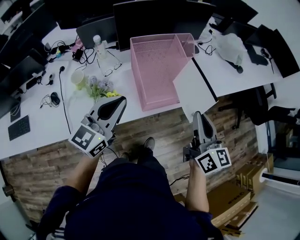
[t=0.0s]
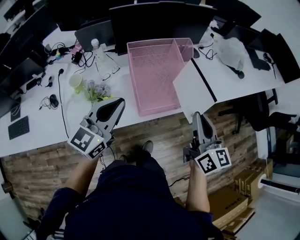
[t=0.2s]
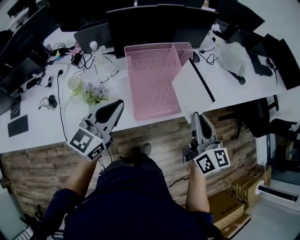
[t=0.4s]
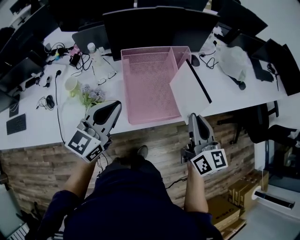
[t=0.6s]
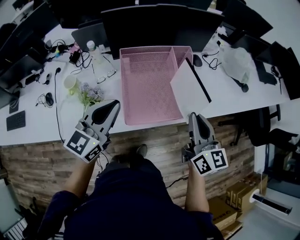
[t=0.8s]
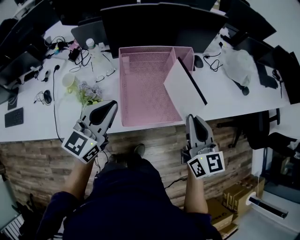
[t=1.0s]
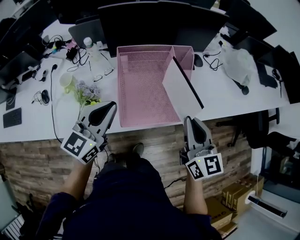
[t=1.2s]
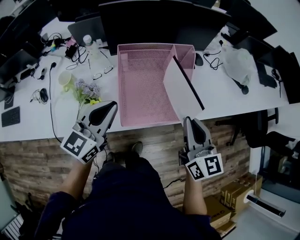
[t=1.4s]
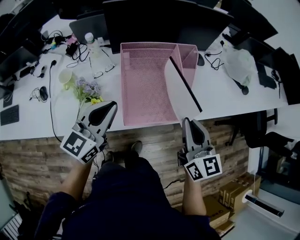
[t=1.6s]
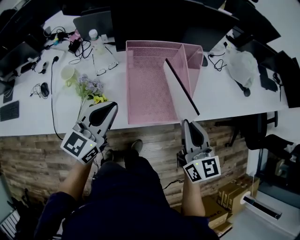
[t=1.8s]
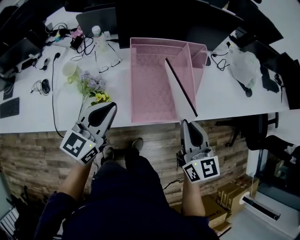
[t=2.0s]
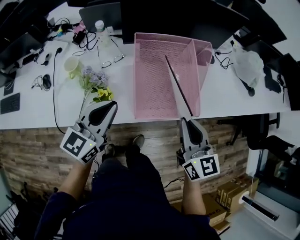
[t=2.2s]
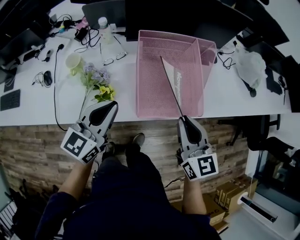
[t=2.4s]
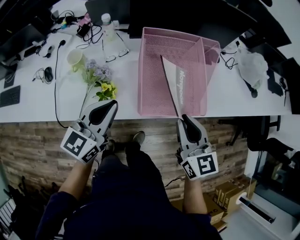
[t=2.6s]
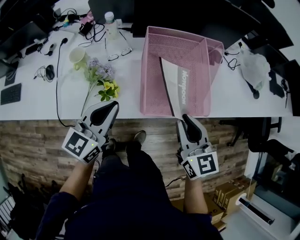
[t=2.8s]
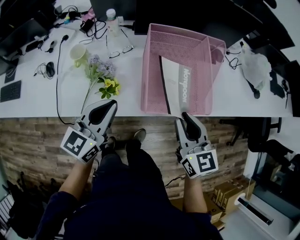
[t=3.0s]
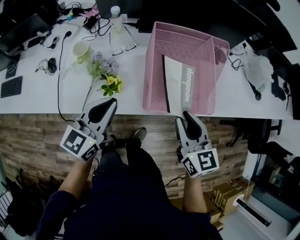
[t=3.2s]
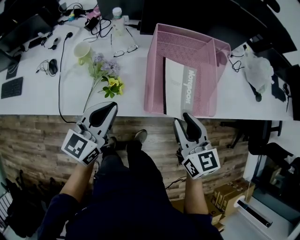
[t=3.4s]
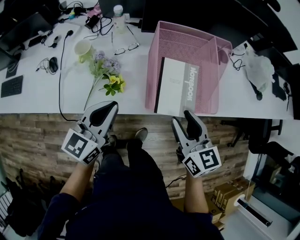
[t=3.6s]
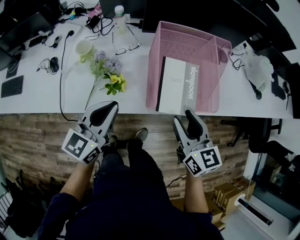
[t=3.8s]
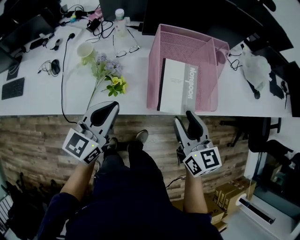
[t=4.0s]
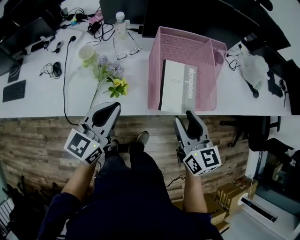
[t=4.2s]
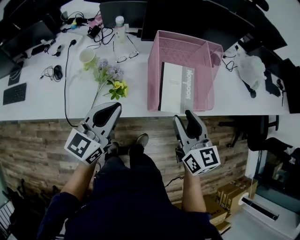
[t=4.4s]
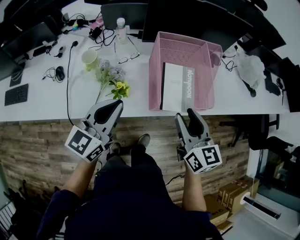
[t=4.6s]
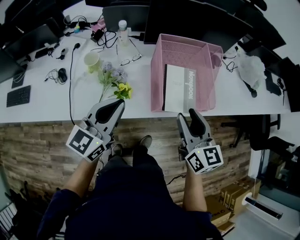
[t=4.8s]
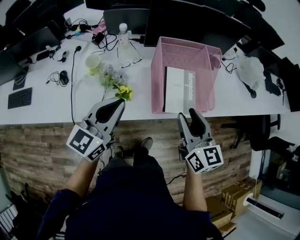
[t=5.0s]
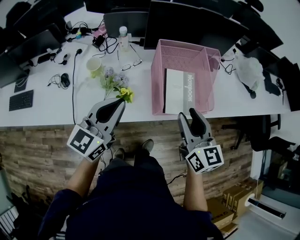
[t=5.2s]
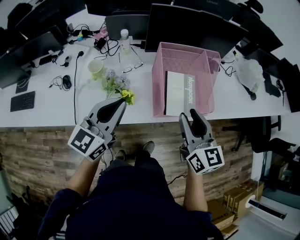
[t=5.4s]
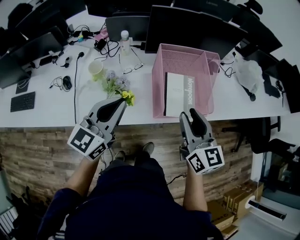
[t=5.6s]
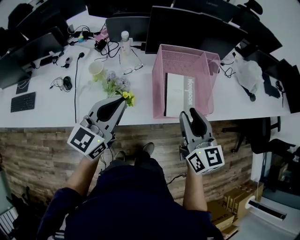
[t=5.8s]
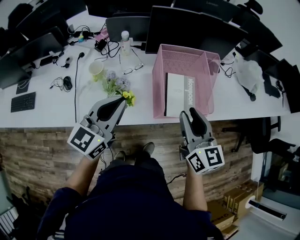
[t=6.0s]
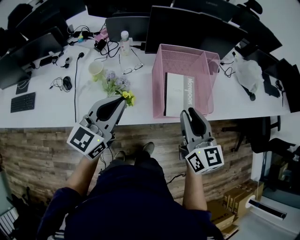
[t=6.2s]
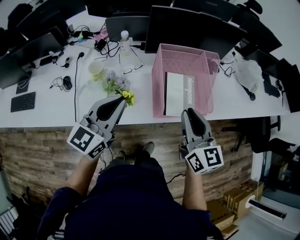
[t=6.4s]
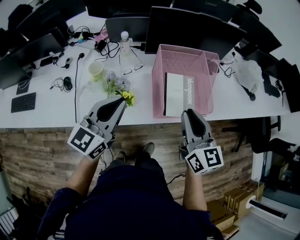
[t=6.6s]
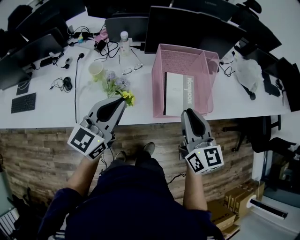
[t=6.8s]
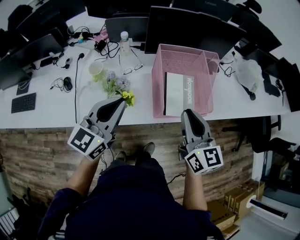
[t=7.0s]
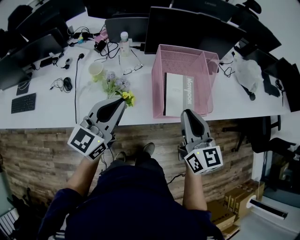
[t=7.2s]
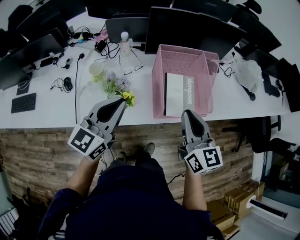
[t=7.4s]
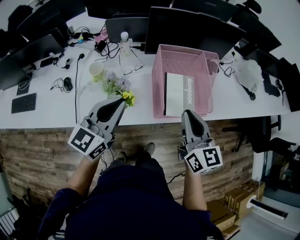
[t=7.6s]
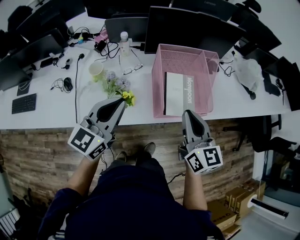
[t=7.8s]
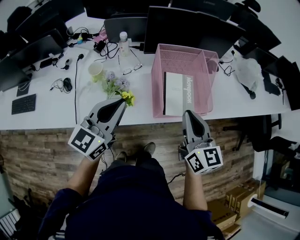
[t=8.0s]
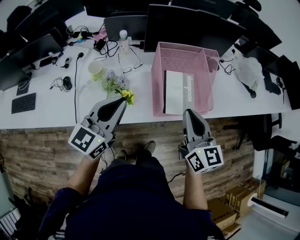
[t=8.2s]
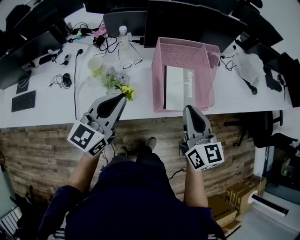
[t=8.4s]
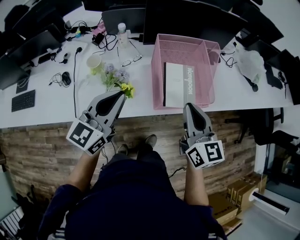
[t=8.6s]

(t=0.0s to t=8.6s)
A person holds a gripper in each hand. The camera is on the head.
t=0.0s - t=1.4s: The grippers both shift forward by about 10 cm.
t=1.4s - t=2.8s: The left gripper goes about 10 cm to the left and backward. The right gripper travels to the left and downward by some 10 cm.
t=2.8s - t=4.4s: The left gripper ends up some 5 cm from where it was. The right gripper opens.
t=4.4s - t=5.8s: Both grippers travel together upward, roughly 5 cm.
t=5.8s - t=7.2s: The right gripper closes its fingers.
t=7.2s - t=8.6s: The grippers stay close to where they were, moving slightly.

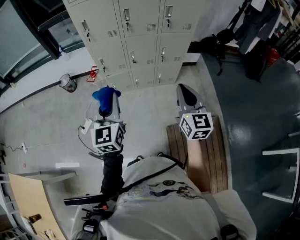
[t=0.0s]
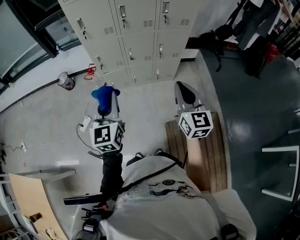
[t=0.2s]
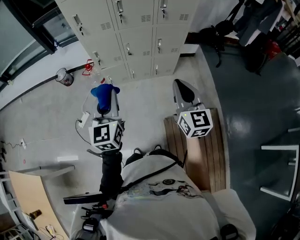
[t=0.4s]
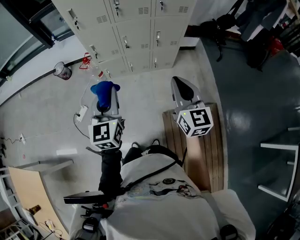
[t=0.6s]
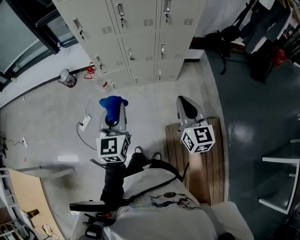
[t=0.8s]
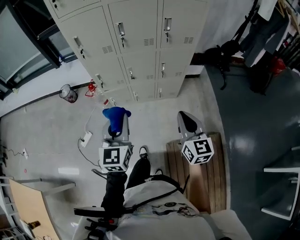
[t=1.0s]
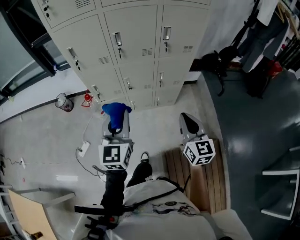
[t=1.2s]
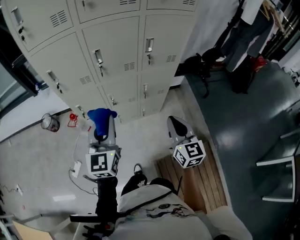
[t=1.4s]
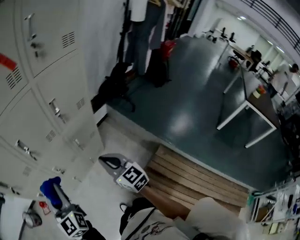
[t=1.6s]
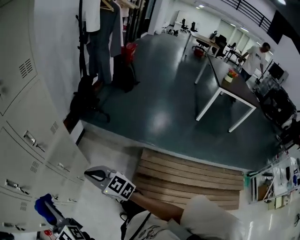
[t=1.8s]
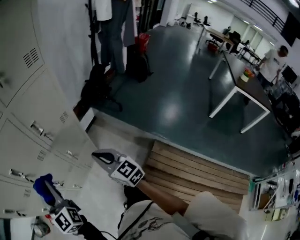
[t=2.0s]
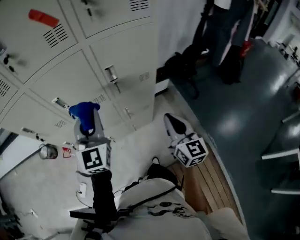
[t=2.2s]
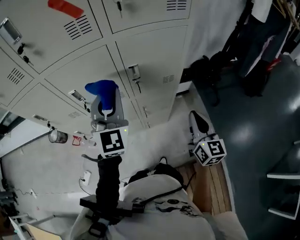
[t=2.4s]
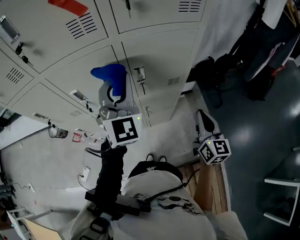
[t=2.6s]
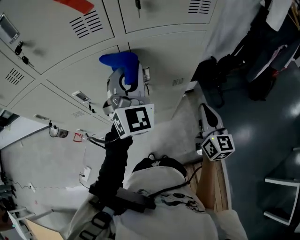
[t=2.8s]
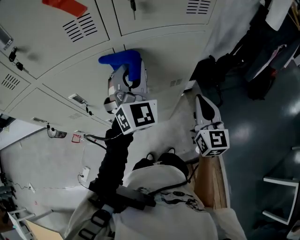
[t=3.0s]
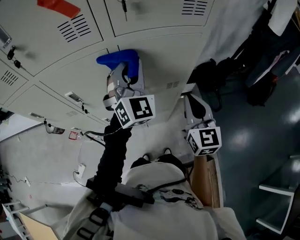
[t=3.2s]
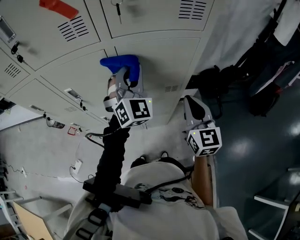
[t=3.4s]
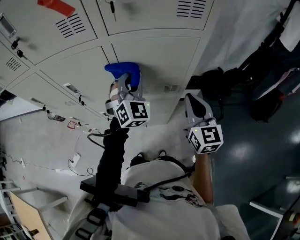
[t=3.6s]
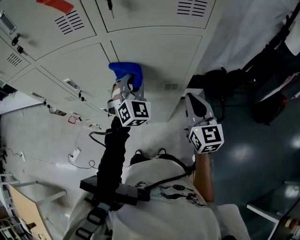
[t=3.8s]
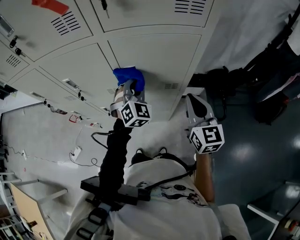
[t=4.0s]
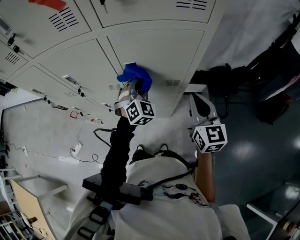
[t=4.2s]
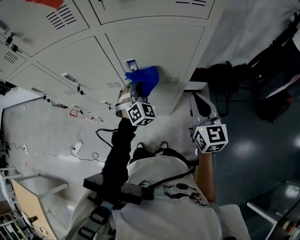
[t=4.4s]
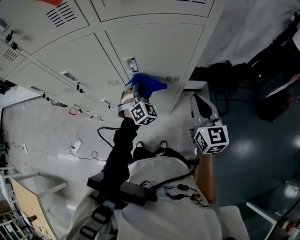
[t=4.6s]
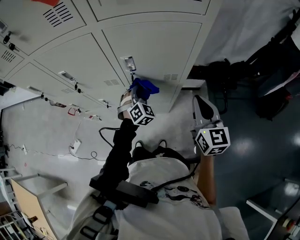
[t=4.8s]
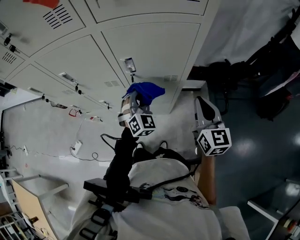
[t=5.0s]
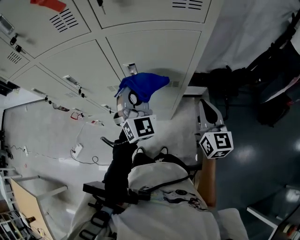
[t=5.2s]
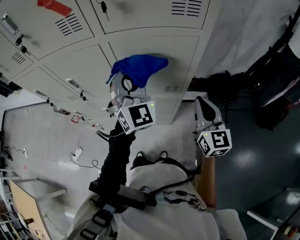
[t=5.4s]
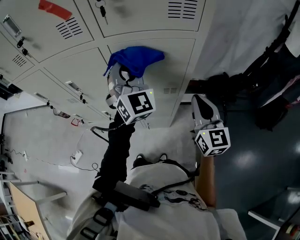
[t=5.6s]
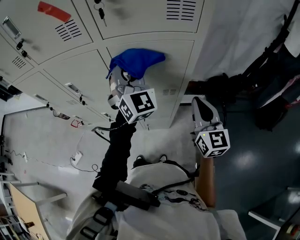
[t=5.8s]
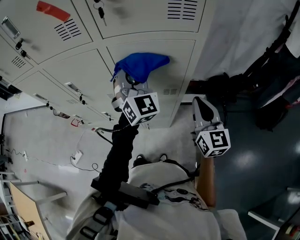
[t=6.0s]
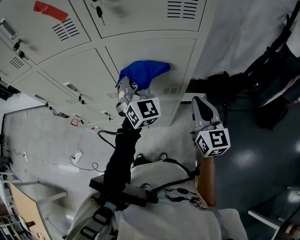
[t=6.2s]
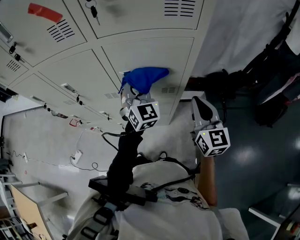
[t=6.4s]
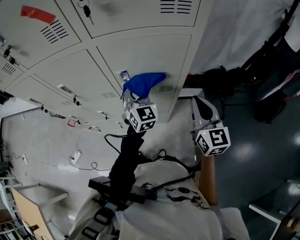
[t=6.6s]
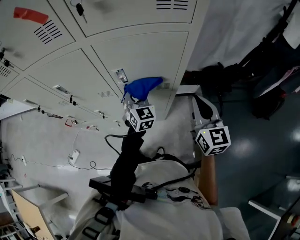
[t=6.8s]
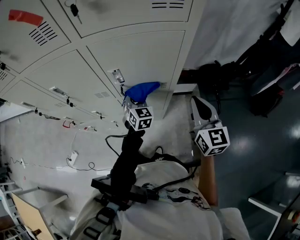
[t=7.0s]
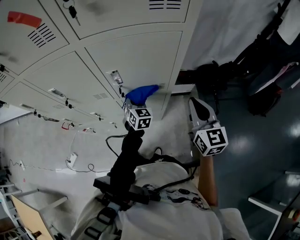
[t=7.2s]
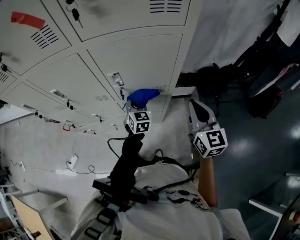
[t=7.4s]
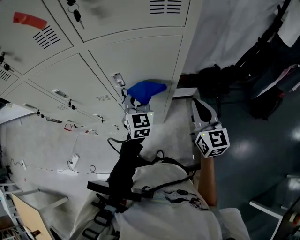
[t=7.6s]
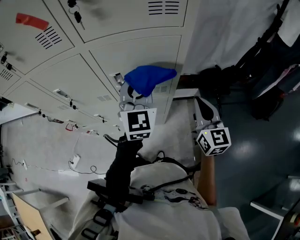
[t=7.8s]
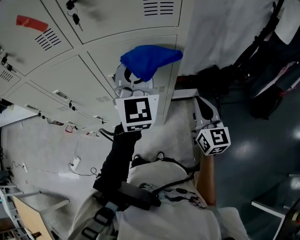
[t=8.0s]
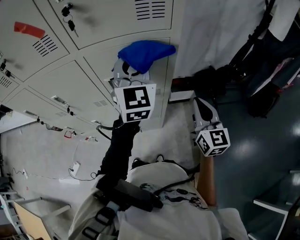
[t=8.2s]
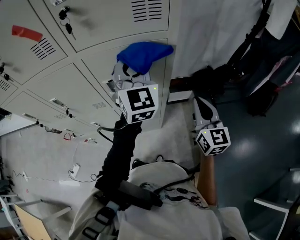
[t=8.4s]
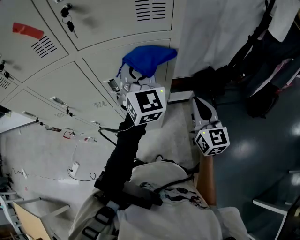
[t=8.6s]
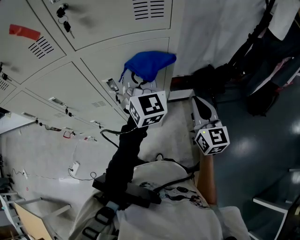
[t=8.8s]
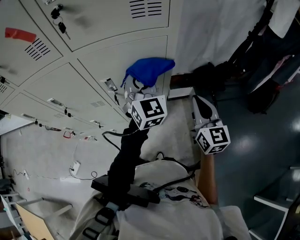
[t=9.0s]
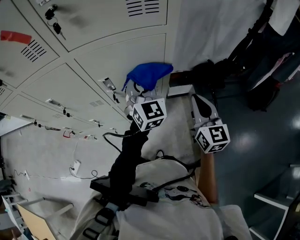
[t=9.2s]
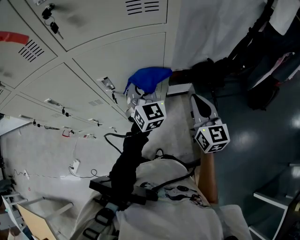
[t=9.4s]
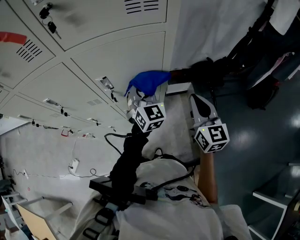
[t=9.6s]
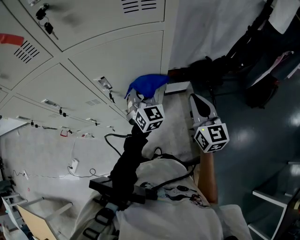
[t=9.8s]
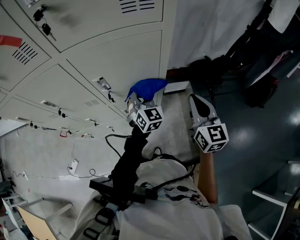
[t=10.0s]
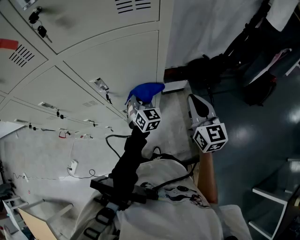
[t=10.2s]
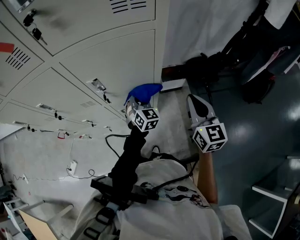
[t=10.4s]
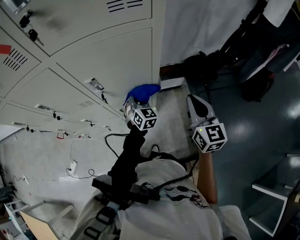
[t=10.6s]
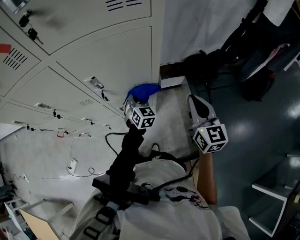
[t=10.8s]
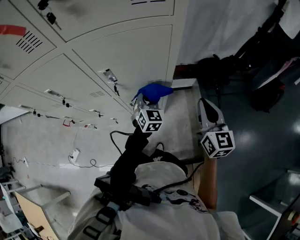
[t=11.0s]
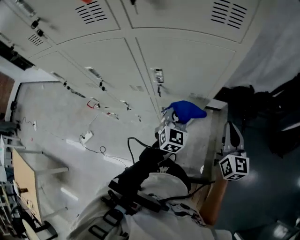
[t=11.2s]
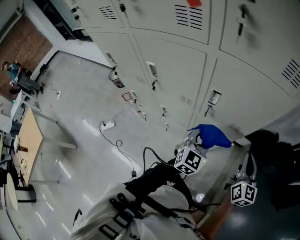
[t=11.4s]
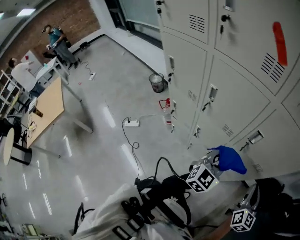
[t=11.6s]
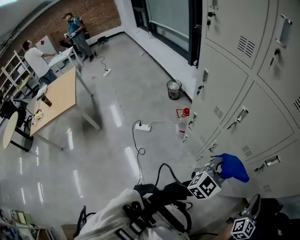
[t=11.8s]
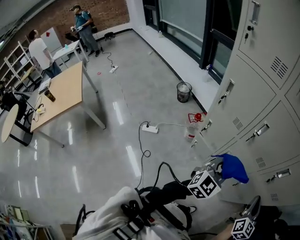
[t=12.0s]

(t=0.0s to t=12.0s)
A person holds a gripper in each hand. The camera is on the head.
t=0.0s - t=1.6s: The grippers both shift forward by approximately 30 cm.
t=1.6s - t=3.0s: Both grippers travel together forward and to the right, some 35 cm. The left gripper twists about 40 degrees clockwise, seen from behind.
t=3.0s - t=4.4s: The left gripper heads downward, covering some 25 cm, and turns by about 30 degrees. The right gripper is displaced to the right and downward by some 10 cm.
t=4.4s - t=6.0s: The left gripper heads upward, covering about 20 cm, and rotates about 30 degrees.
t=6.0s - t=7.6s: The left gripper shifts roughly 15 cm downward, and rotates approximately 30 degrees.
t=7.6s - t=9.0s: The left gripper shifts about 15 cm upward and to the right.
t=9.0s - t=10.4s: The left gripper goes approximately 25 cm downward, and swivels about 20 degrees.
t=10.4s - t=12.0s: The right gripper travels to the left by roughly 35 cm. Meanwhile the left gripper is displaced to the left, backward and upward by some 50 cm, and swivels about 30 degrees.

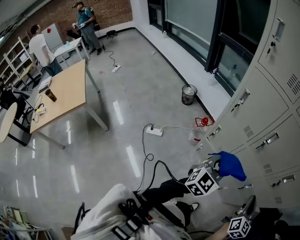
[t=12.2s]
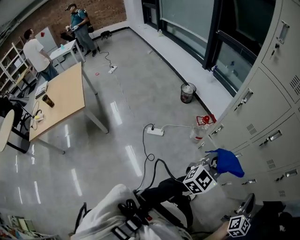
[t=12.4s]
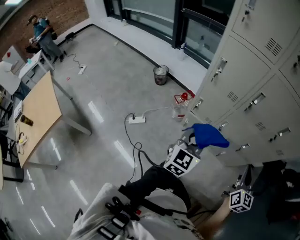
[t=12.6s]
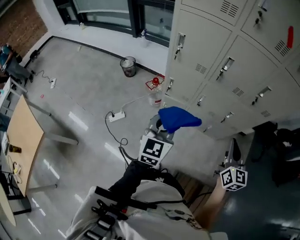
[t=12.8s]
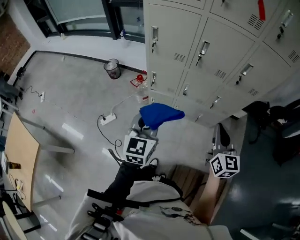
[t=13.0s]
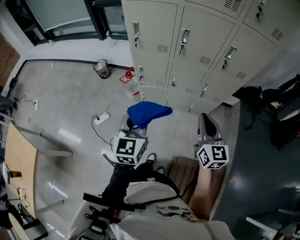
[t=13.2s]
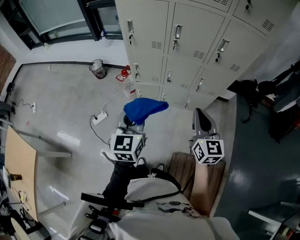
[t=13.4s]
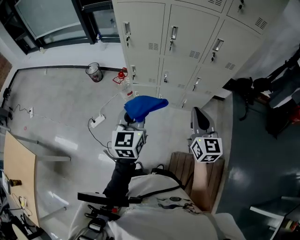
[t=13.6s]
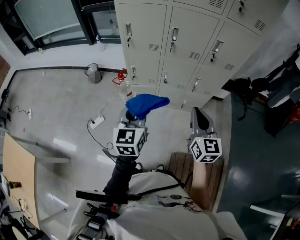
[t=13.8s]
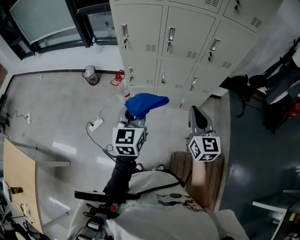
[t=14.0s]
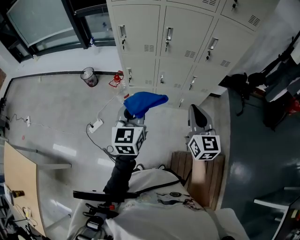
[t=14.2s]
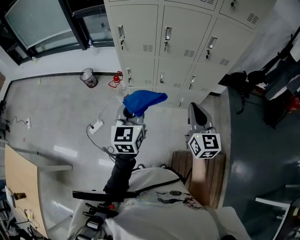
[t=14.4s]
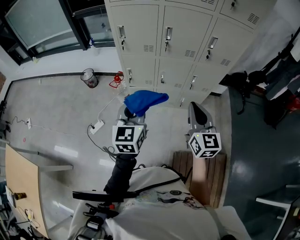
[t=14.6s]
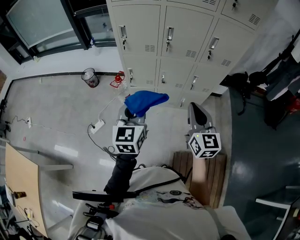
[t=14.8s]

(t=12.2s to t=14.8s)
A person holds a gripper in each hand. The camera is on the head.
t=12.2s - t=13.4s: Both grippers travel together backward, approximately 20 cm.
t=13.4s - t=14.8s: There are only small adjustments of the grippers.
